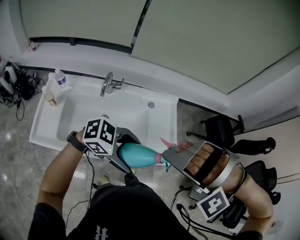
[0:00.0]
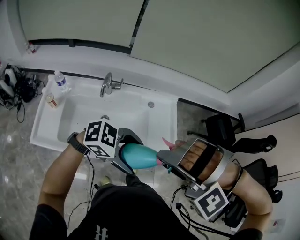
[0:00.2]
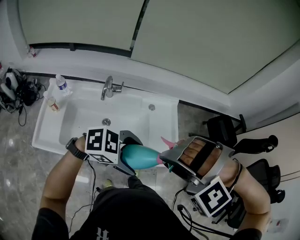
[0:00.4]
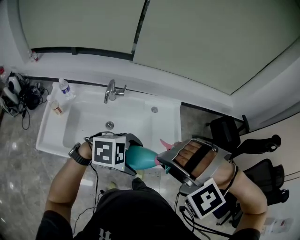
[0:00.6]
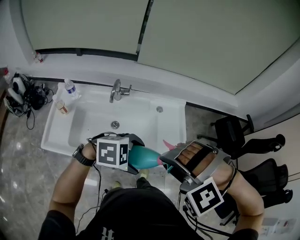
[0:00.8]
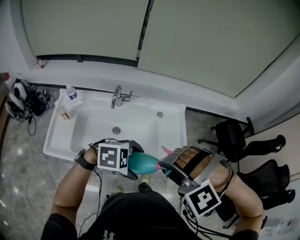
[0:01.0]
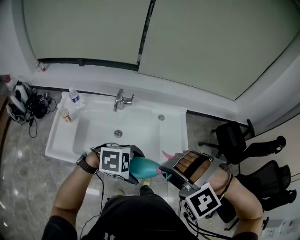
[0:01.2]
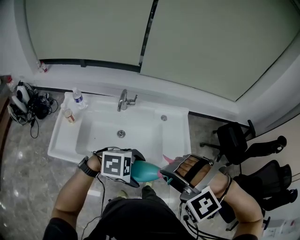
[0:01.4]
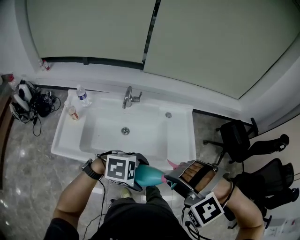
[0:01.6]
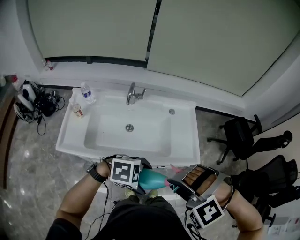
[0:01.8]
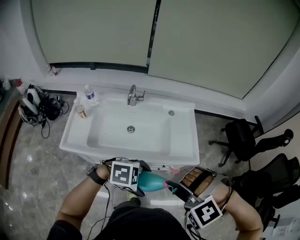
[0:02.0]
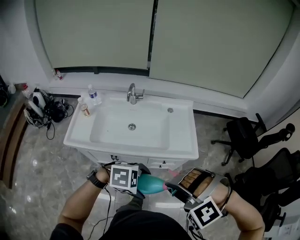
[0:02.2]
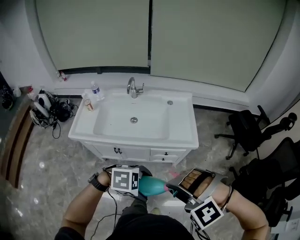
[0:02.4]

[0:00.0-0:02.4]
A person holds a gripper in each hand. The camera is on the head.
0.0 to 1.2 s: The left gripper swivels approximately 30 degrees, while the right gripper ends up about 5 cm from where it was, and swivels roughly 20 degrees.
1.2 to 2.4 s: The left gripper ends up some 30 cm from where it was. Meanwhile the right gripper ends up roughly 30 cm from where it was.

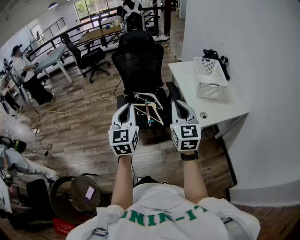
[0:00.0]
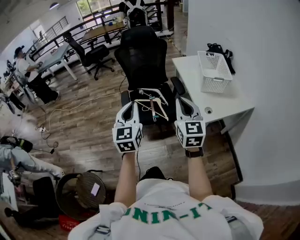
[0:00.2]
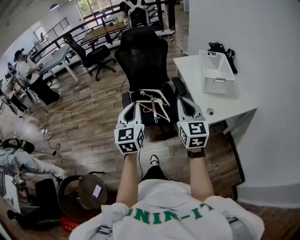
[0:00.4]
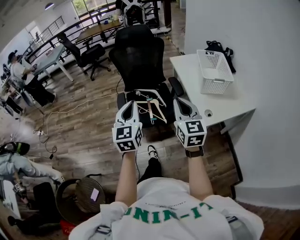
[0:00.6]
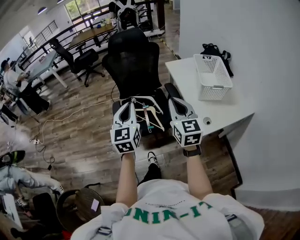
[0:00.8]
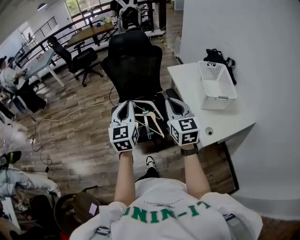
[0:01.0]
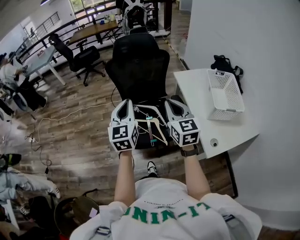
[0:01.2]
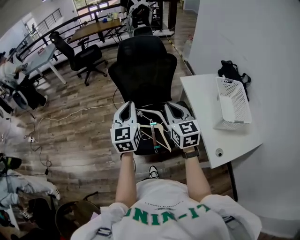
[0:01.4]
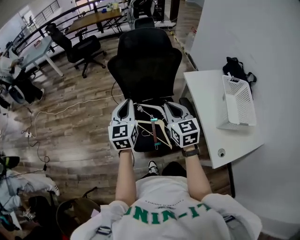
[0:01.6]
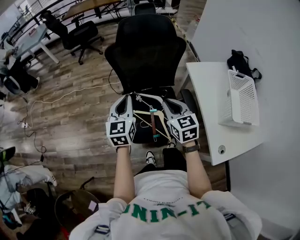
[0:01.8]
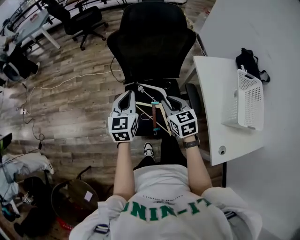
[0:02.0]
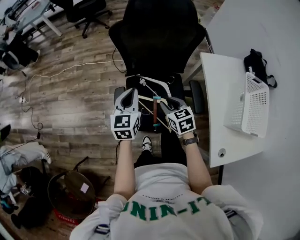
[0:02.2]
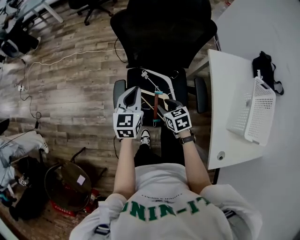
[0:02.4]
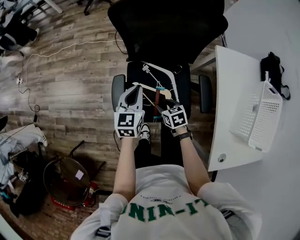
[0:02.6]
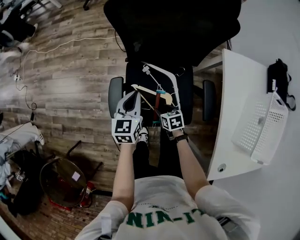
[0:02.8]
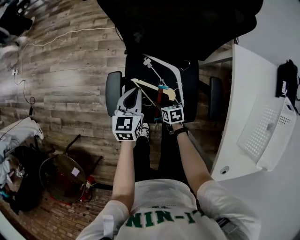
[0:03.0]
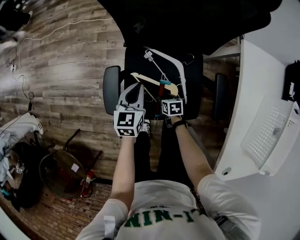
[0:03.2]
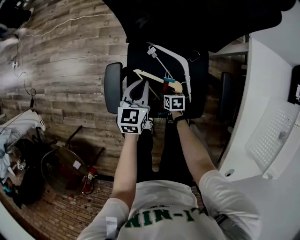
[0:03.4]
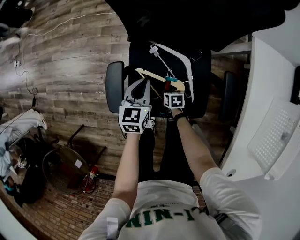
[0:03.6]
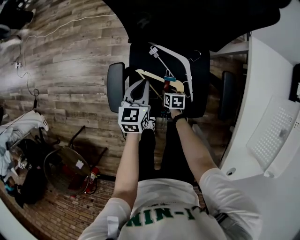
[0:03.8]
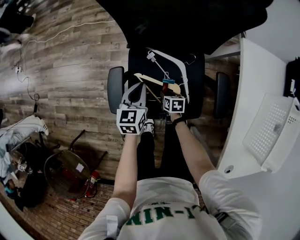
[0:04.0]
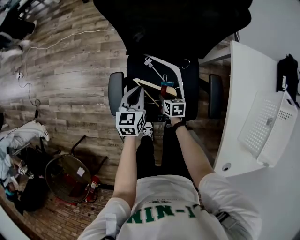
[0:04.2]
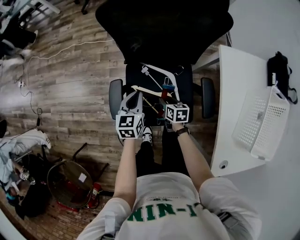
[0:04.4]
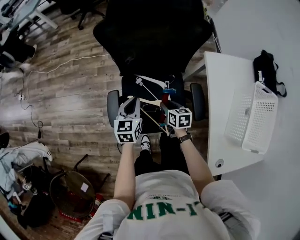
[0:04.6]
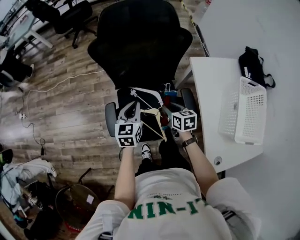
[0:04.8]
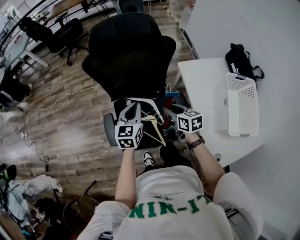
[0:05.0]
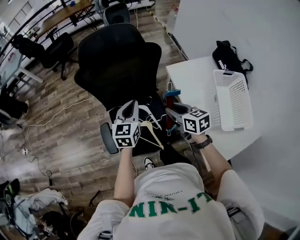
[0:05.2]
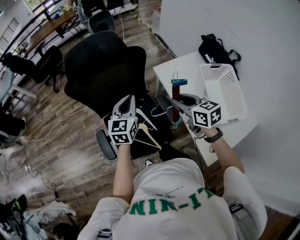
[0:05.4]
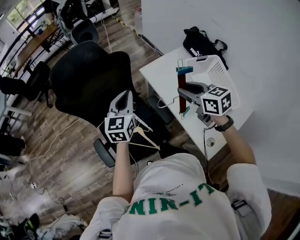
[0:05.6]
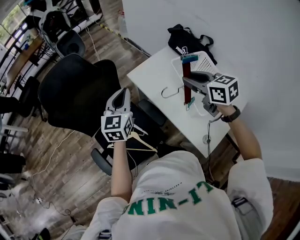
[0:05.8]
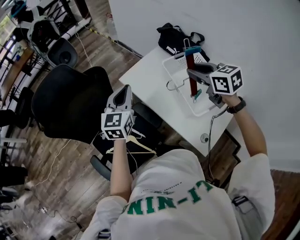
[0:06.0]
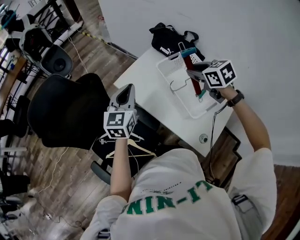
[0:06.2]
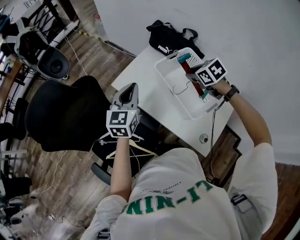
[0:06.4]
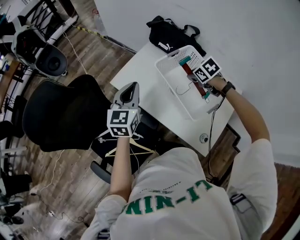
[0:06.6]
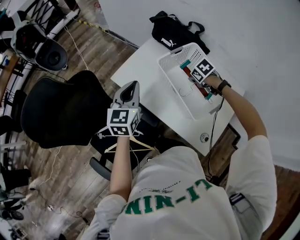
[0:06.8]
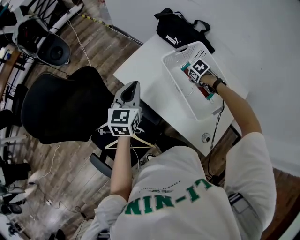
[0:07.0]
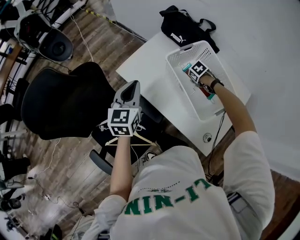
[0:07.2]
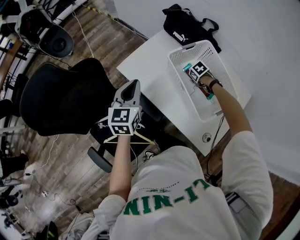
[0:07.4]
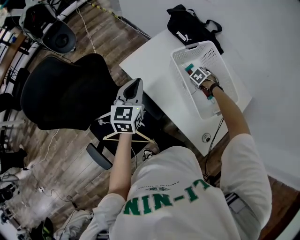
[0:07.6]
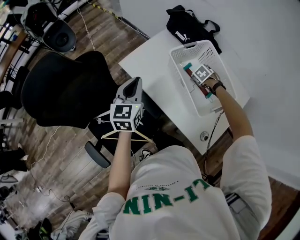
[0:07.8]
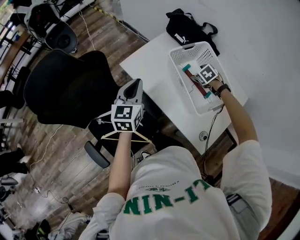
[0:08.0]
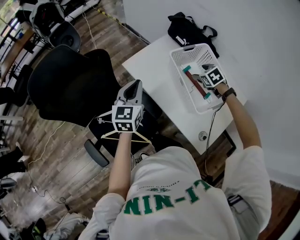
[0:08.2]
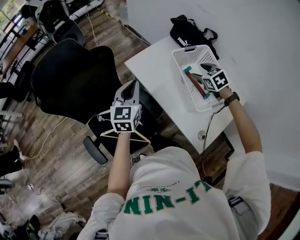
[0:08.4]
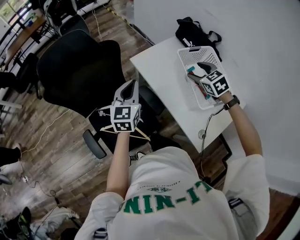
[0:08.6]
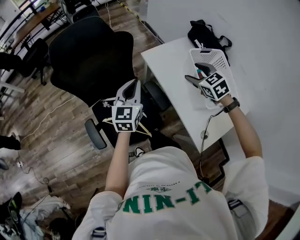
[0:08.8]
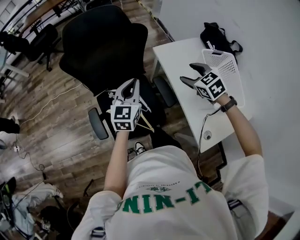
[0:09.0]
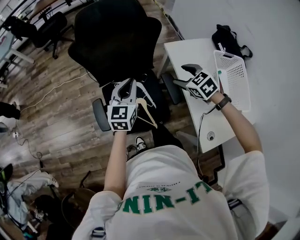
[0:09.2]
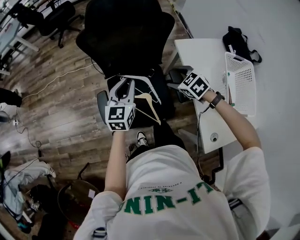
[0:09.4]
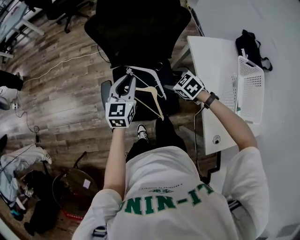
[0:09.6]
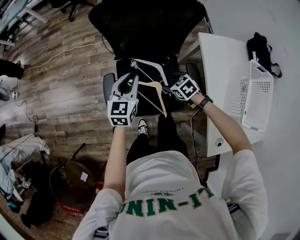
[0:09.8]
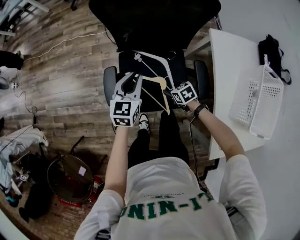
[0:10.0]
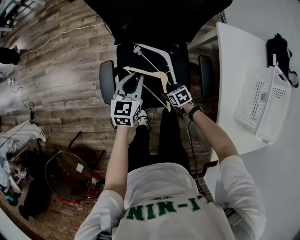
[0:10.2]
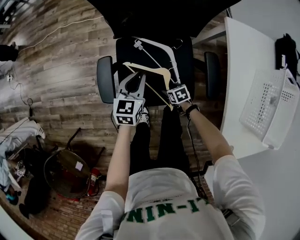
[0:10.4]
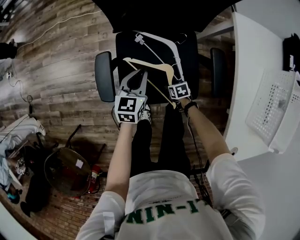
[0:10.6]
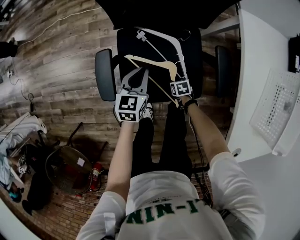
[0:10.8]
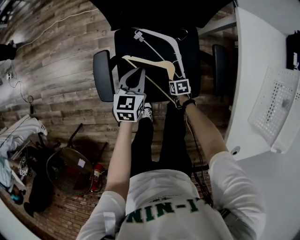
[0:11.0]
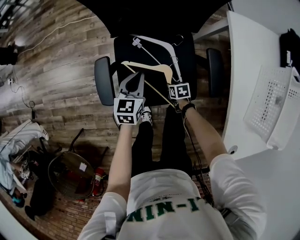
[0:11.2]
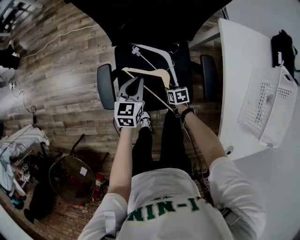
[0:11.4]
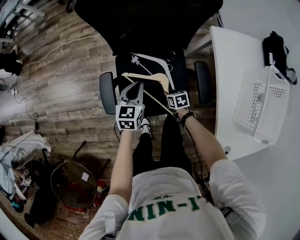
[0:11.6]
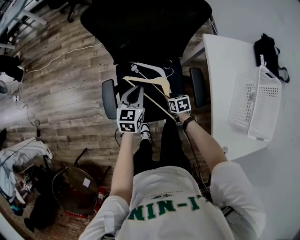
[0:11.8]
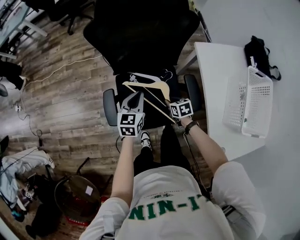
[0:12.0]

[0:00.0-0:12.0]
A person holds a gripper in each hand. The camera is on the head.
0.0 to 1.6 s: The two grippers travel together, forward, about 50 cm.
1.6 to 3.0 s: The left gripper is displaced downward by some 35 cm, and swivels roughly 30 degrees. Meanwhile the right gripper moves downward, about 60 cm, tips its fingers downward by roughly 40 degrees, and opens its fingers.
3.0 to 4.4 s: The right gripper moves upward, about 10 cm.
4.4 to 6.0 s: The right gripper goes some 50 cm upward, and swivels some 30 degrees. The left gripper changes place by approximately 50 cm, and changes its angle by roughly 50 degrees.
6.0 to 7.6 s: The left gripper travels downward by approximately 10 cm, while the right gripper moves downward, about 40 cm, points its fingers some 40 degrees further downward, and opens up.
7.6 to 9.0 s: The right gripper shifts by about 40 cm, and angles its fingers upward, by approximately 30 degrees; the left gripper changes place by some 25 cm, and swivels roughly 20 degrees.
9.0 to 10.4 s: The left gripper heads downward, covering some 30 cm, and turns by some 30 degrees, while the right gripper heads downward, covering some 50 cm, and changes its angle by roughly 40 degrees.
10.4 to 12.0 s: The left gripper is displaced upward by about 10 cm. The right gripper moves upward, about 20 cm, and closes its fingers.

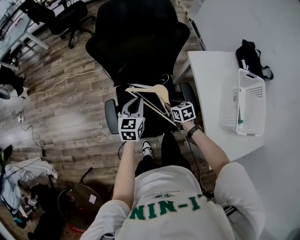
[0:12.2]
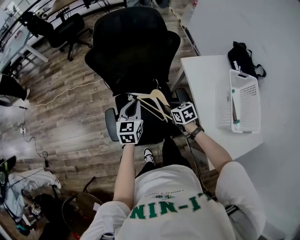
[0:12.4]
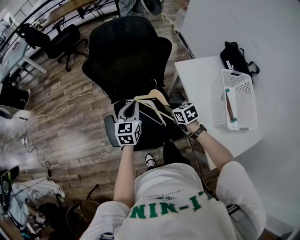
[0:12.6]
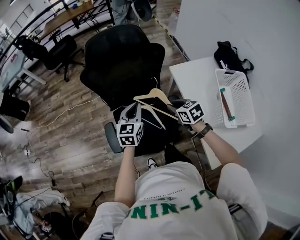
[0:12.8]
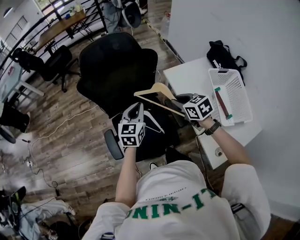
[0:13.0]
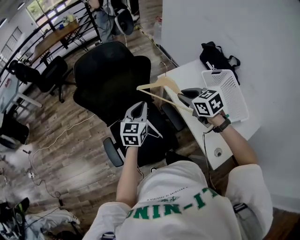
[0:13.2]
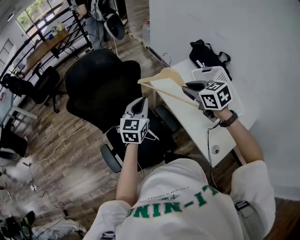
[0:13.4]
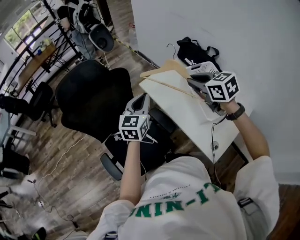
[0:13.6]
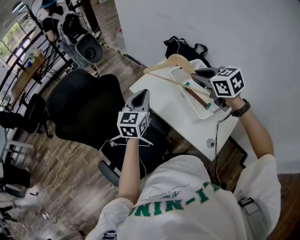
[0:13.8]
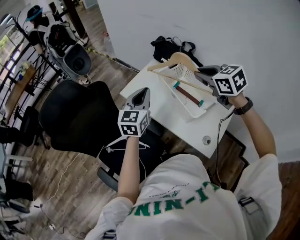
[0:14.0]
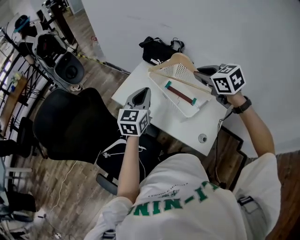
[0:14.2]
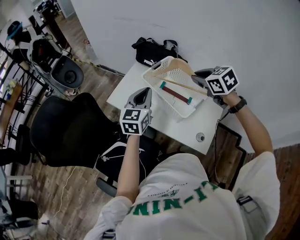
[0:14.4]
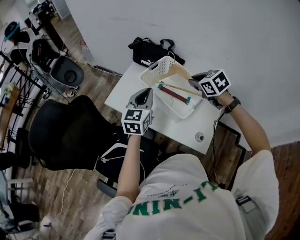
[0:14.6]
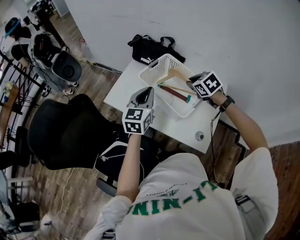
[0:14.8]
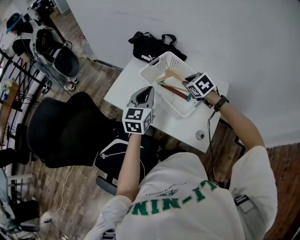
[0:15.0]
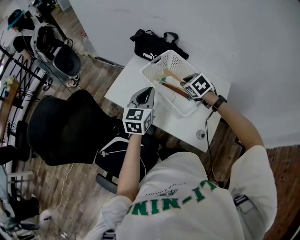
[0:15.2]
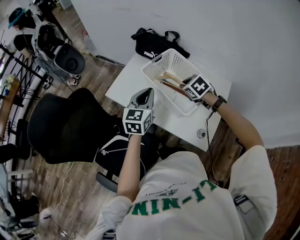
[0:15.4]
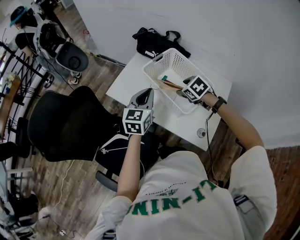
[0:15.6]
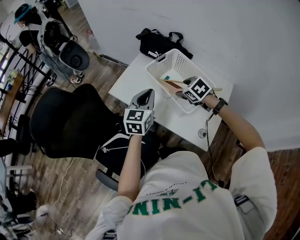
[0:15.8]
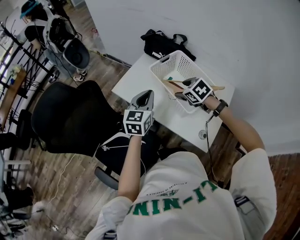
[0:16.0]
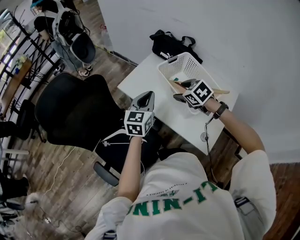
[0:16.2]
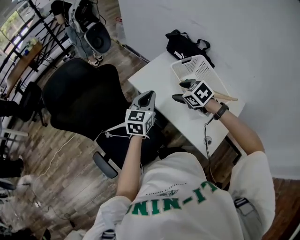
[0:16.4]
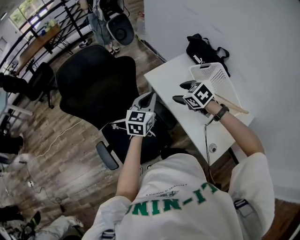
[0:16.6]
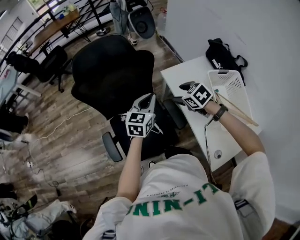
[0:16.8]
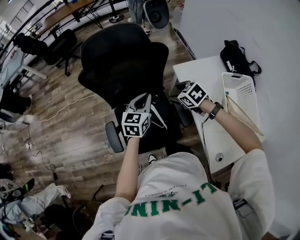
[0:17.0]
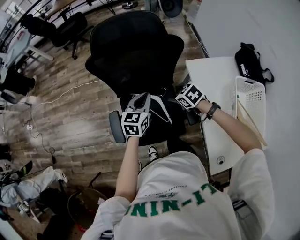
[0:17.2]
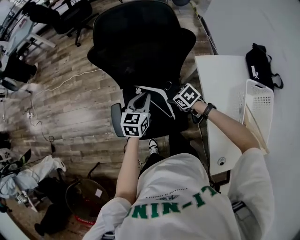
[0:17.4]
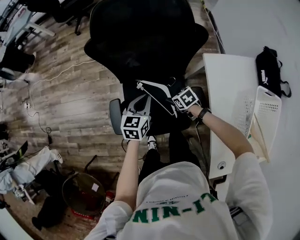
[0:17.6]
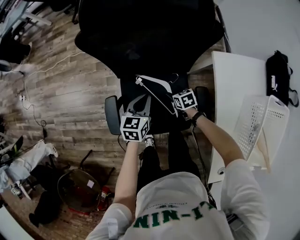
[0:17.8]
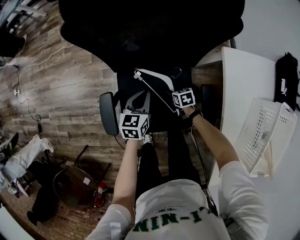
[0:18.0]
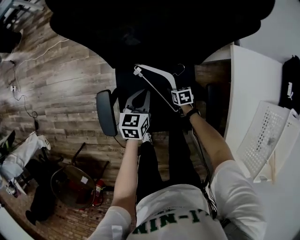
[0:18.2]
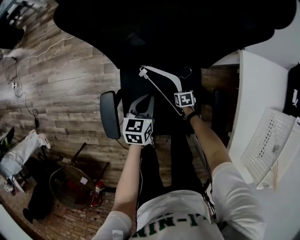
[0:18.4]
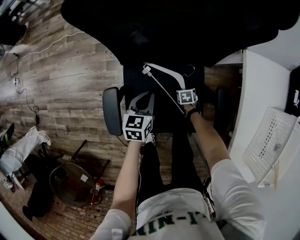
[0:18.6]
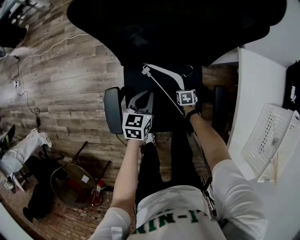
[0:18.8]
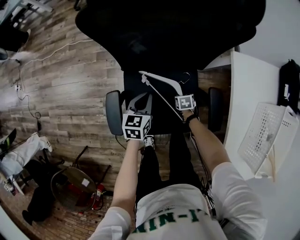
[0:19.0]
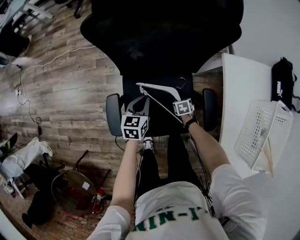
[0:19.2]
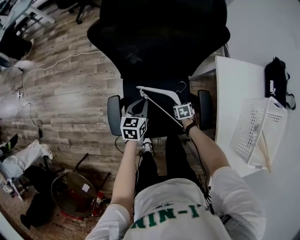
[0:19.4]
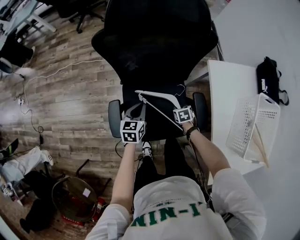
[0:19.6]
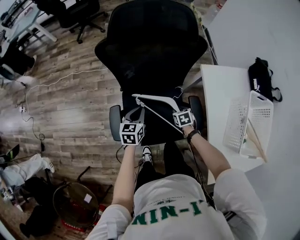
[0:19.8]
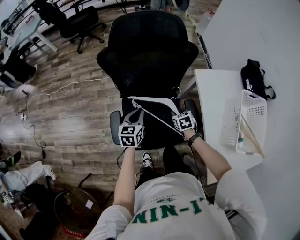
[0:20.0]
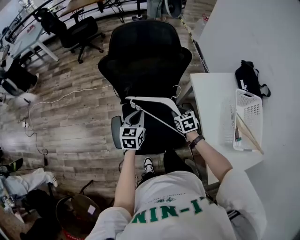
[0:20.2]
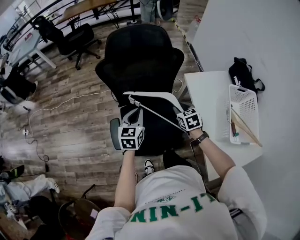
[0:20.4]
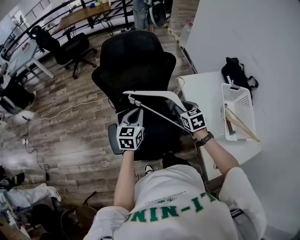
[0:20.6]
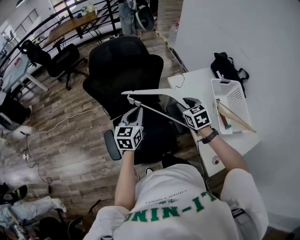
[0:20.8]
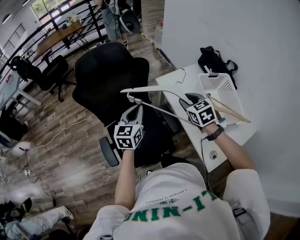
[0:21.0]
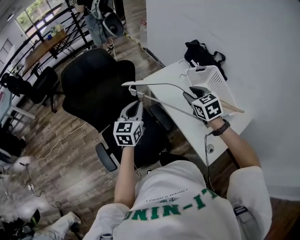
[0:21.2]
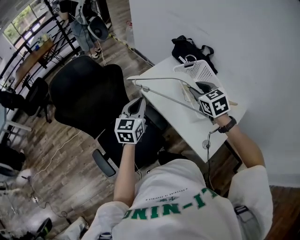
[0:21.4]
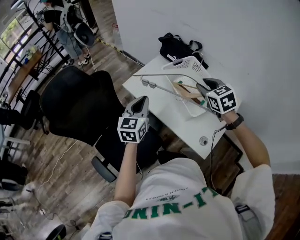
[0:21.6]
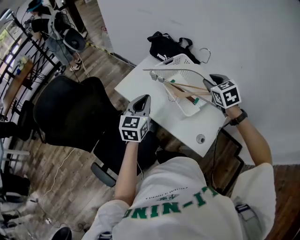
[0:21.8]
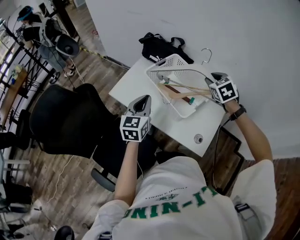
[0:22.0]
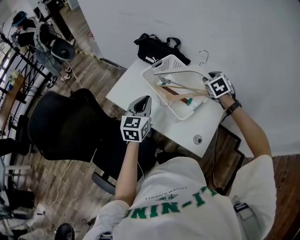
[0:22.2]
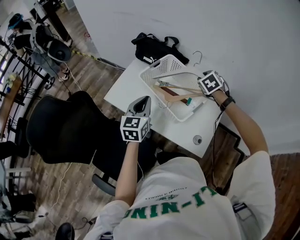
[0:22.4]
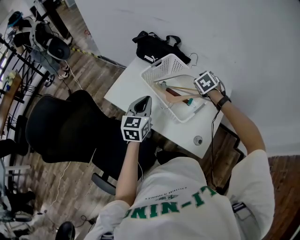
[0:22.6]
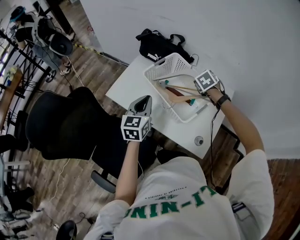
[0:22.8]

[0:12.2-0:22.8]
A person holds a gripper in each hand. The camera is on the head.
12.2 to 13.8 s: The left gripper changes place by some 40 cm, and rotates some 40 degrees, while the right gripper is displaced upward by roughly 40 cm, and rotates some 30 degrees.
13.8 to 15.2 s: The right gripper is displaced downward and to the right by roughly 20 cm, and rotates about 30 degrees. The left gripper is displaced to the right and forward by about 15 cm.
15.2 to 16.8 s: The right gripper changes place by some 35 cm, rotates roughly 40 degrees, and opens its fingers; the left gripper ends up roughly 30 cm from where it was, and changes its angle by about 40 degrees.
16.8 to 18.2 s: Both grippers travel together downward, approximately 50 cm. The right gripper turns by roughly 20 degrees. Meanwhile the left gripper rotates about 30 degrees.
18.2 to 19.8 s: The left gripper travels upward by about 15 cm. The right gripper is displaced upward by some 25 cm, and closes.
19.8 to 21.2 s: The grippers both shift upward and to the right by some 40 cm. The right gripper rotates approximately 30 degrees, while the left gripper rotates approximately 40 degrees.
21.2 to 22.8 s: The left gripper ends up some 25 cm from where it was, and rotates about 30 degrees. Meanwhile the right gripper changes place by about 35 cm, and rotates approximately 40 degrees.
